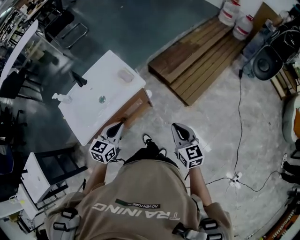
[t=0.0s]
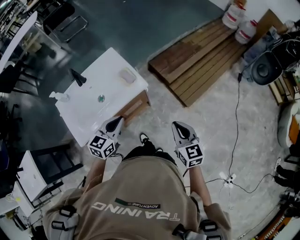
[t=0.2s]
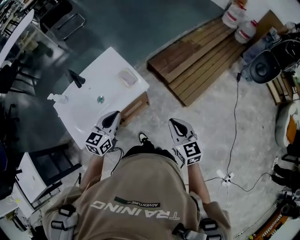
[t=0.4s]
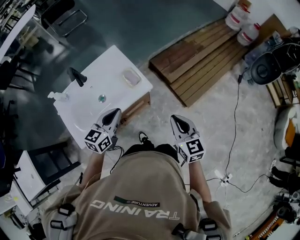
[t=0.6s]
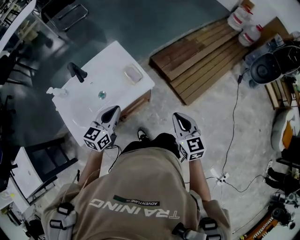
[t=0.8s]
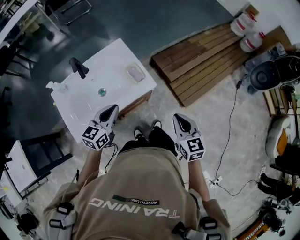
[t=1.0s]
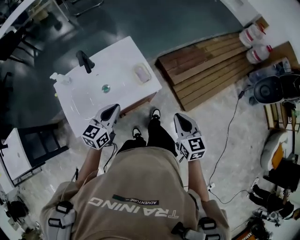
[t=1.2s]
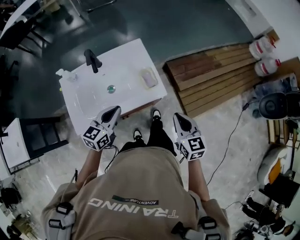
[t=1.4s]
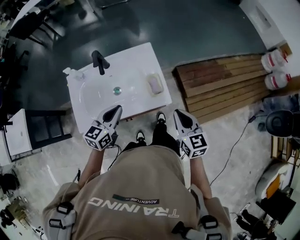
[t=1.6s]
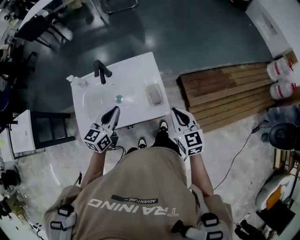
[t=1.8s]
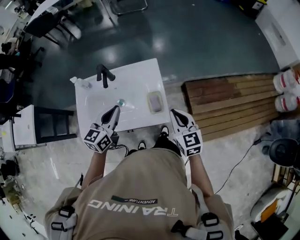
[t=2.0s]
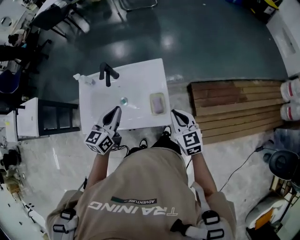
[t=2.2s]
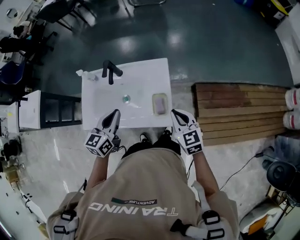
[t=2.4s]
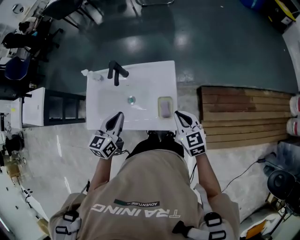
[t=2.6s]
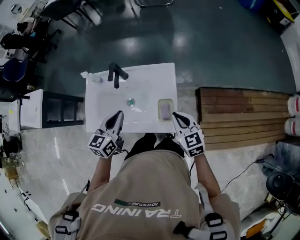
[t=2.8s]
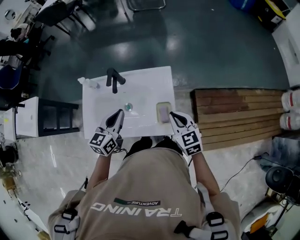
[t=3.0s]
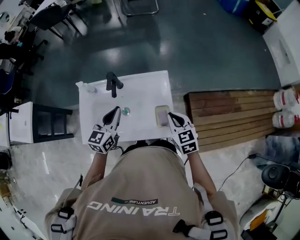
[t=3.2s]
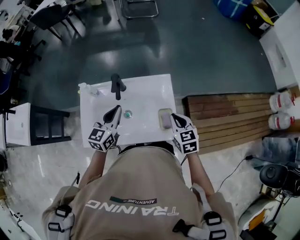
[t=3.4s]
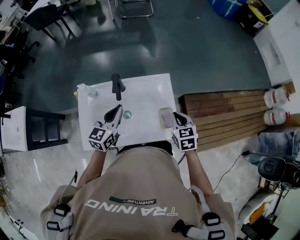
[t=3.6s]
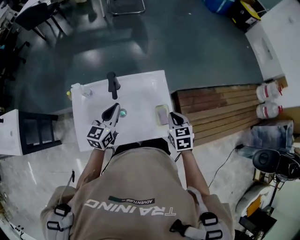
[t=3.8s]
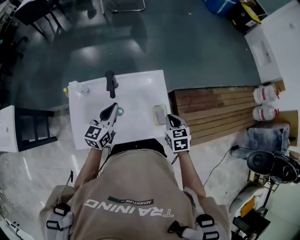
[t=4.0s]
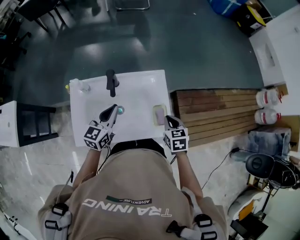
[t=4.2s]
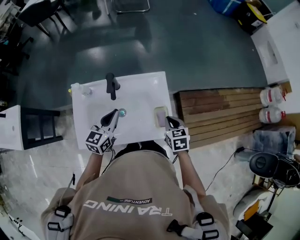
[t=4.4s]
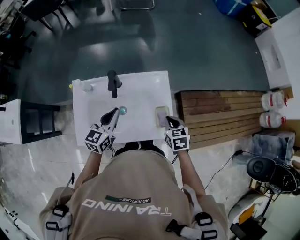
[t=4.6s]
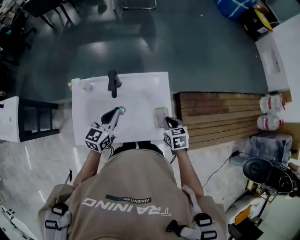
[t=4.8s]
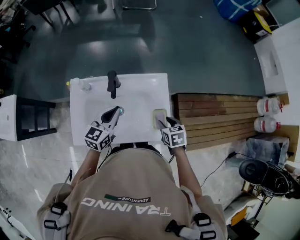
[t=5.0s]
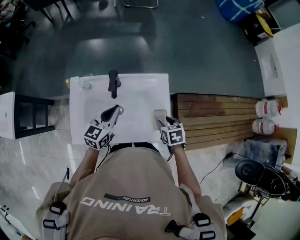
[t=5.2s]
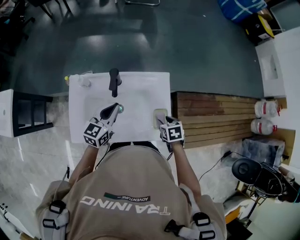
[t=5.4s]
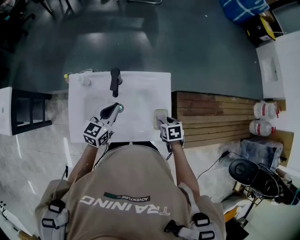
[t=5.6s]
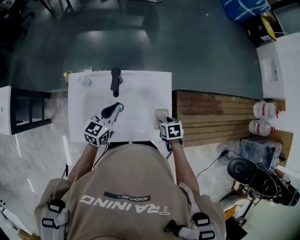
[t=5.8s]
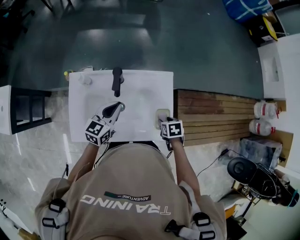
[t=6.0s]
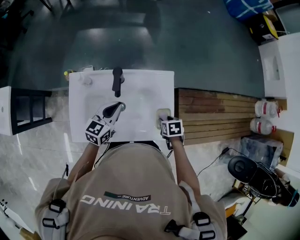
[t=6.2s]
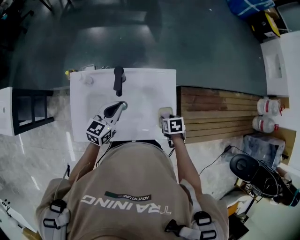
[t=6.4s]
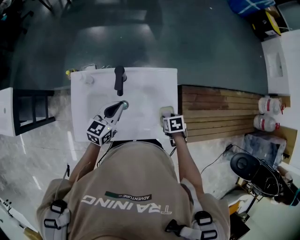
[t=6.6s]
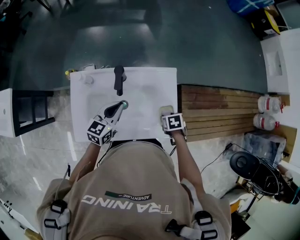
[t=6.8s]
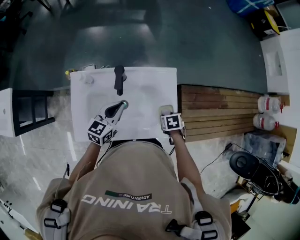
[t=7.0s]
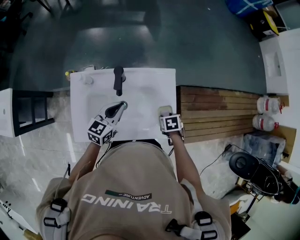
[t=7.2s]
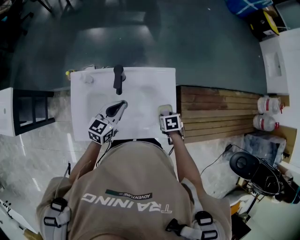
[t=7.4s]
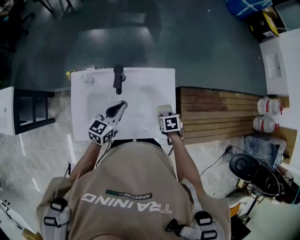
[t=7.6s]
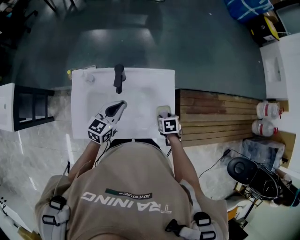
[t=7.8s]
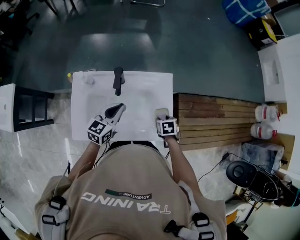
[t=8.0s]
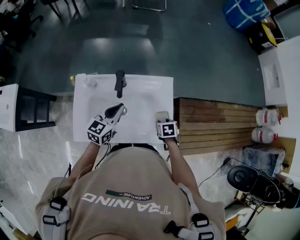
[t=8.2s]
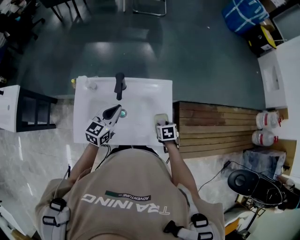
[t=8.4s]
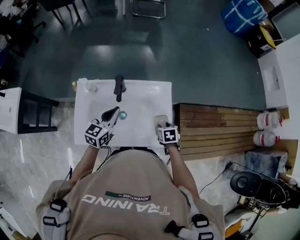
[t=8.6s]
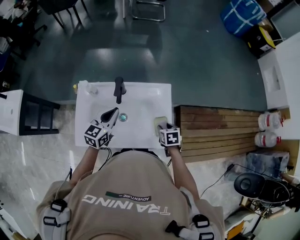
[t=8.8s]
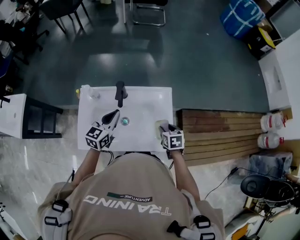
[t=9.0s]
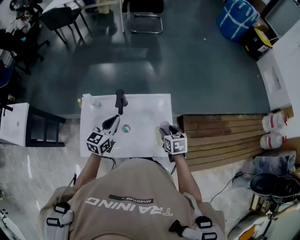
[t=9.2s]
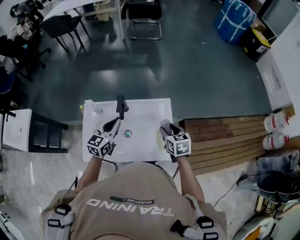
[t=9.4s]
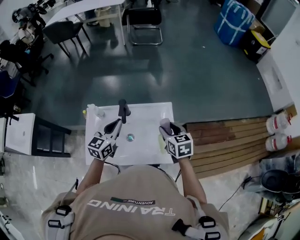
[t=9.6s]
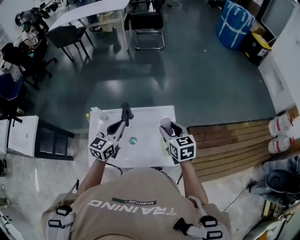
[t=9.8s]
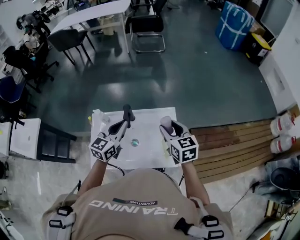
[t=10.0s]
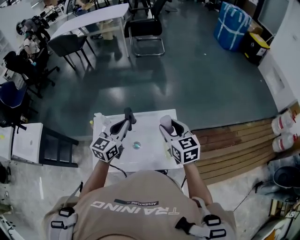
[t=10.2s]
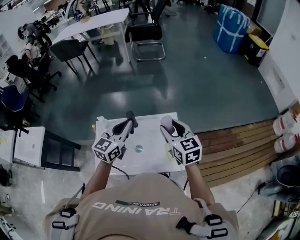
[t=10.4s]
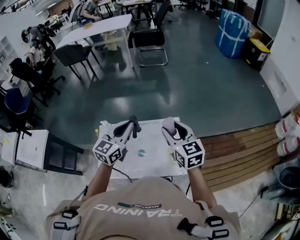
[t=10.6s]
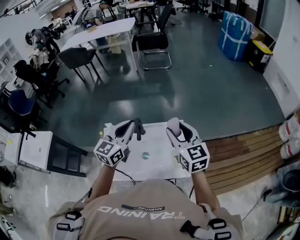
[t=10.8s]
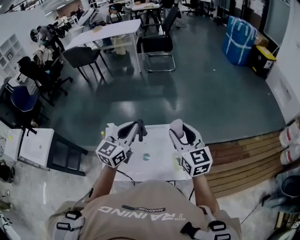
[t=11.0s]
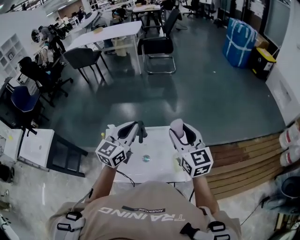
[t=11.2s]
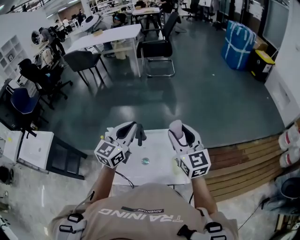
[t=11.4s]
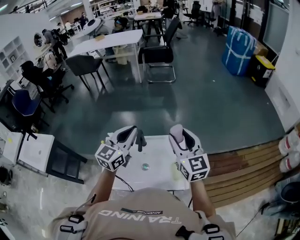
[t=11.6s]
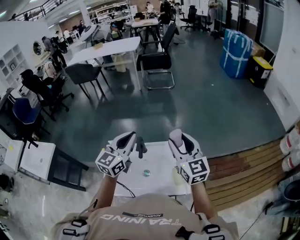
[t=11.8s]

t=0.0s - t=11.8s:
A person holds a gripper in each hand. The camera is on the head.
t=0.0s - t=1.4s: Both grippers travel together forward and to the left, some 20 cm. The left gripper changes its angle by some 20 degrees.
t=1.4s - t=3.0s: The right gripper ends up roughly 20 cm from where it was, and changes its angle by approximately 30 degrees; the left gripper changes place by some 15 cm, and rotates about 30 degrees.
t=3.0s - t=4.4s: The right gripper moves downward, roughly 5 cm, and turns by approximately 30 degrees; the left gripper changes place by roughly 5 cm.
t=4.4s - t=6.0s: The left gripper moves some 5 cm. The right gripper travels downward by roughly 10 cm, changes its angle by some 30 degrees, and opens.
t=6.0s - t=8.8s: There are only small adjustments of the grippers.
t=8.8s - t=10.4s: The left gripper shifts roughly 15 cm upward; the right gripper travels upward by approximately 30 cm, and angles its fingers upward, by approximately 40 degrees.
t=10.4s - t=11.8s: The two grippers go about 10 cm upward. The right gripper rotates some 20 degrees.

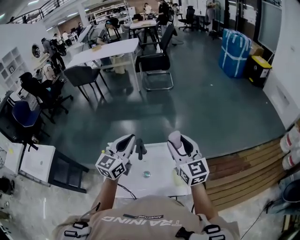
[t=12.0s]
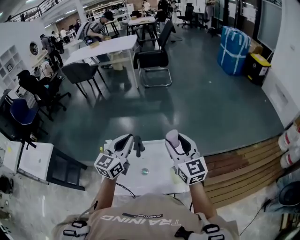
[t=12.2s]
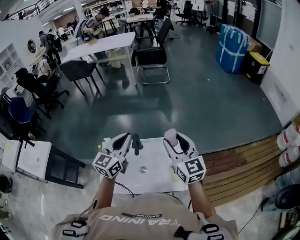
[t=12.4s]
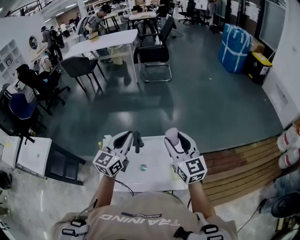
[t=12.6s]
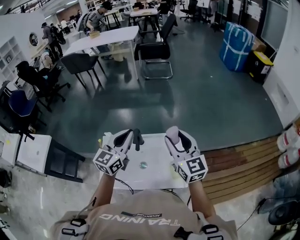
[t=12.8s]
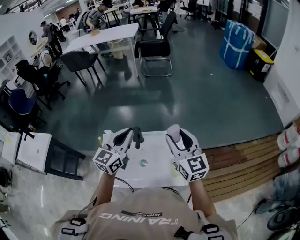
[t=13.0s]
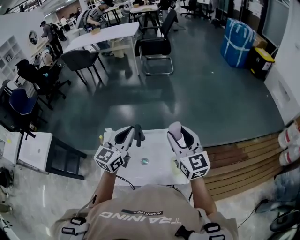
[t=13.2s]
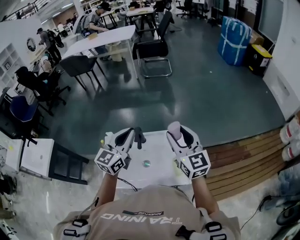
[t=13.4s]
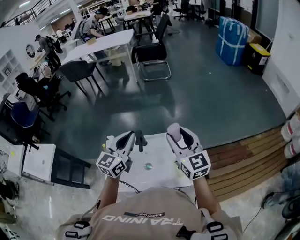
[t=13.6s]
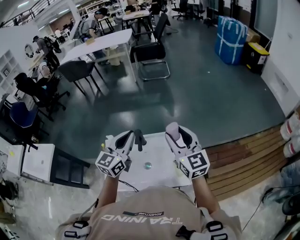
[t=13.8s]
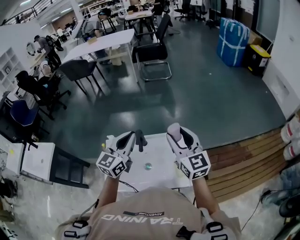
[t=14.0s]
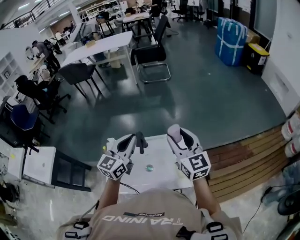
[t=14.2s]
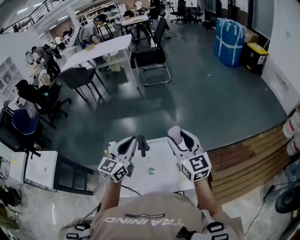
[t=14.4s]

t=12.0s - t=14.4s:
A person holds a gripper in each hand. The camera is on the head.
t=12.0s - t=13.2s: There are only small adjustments of the grippers.
t=13.2s - t=14.4s: The two grippers keep their place.

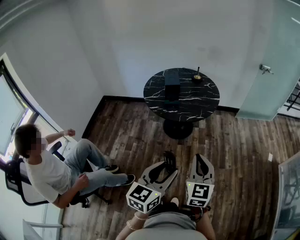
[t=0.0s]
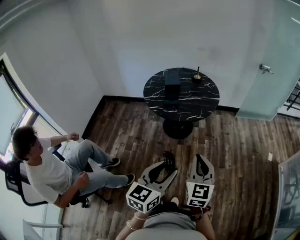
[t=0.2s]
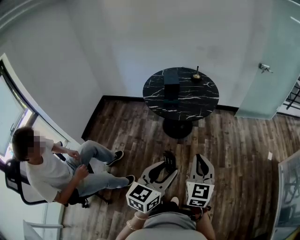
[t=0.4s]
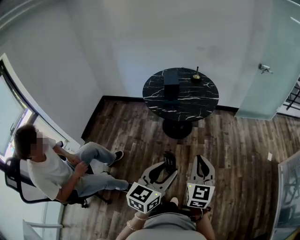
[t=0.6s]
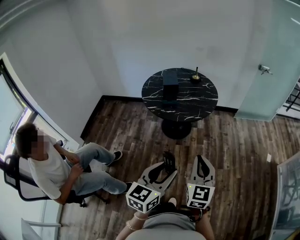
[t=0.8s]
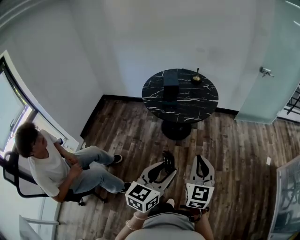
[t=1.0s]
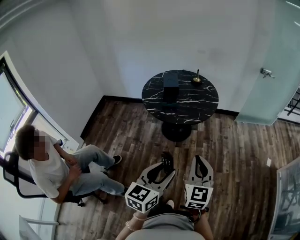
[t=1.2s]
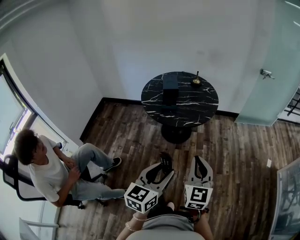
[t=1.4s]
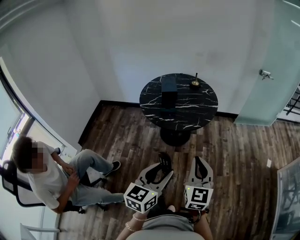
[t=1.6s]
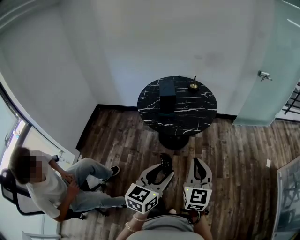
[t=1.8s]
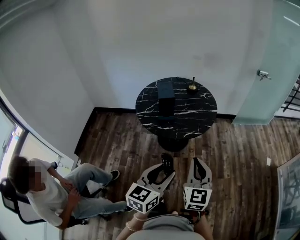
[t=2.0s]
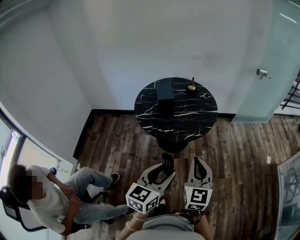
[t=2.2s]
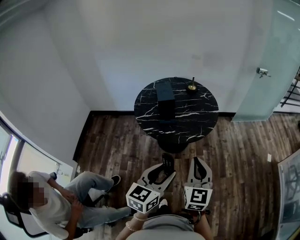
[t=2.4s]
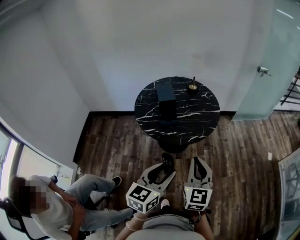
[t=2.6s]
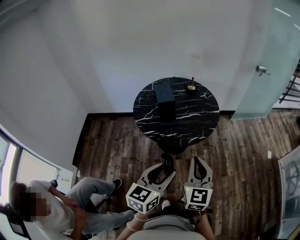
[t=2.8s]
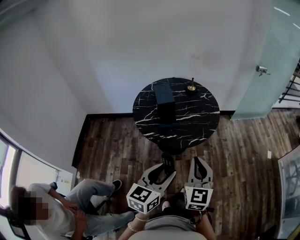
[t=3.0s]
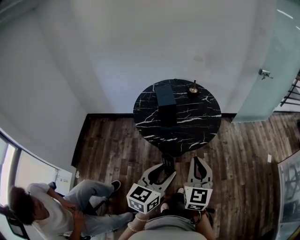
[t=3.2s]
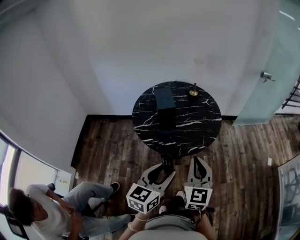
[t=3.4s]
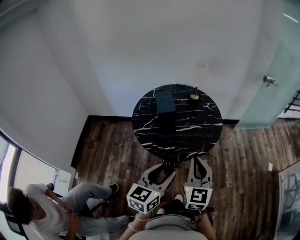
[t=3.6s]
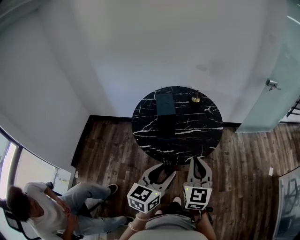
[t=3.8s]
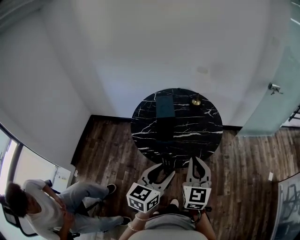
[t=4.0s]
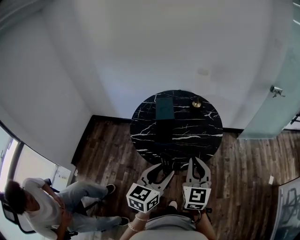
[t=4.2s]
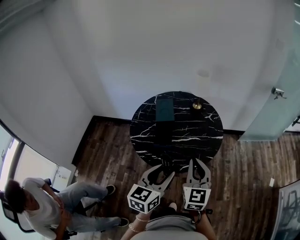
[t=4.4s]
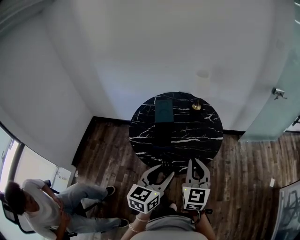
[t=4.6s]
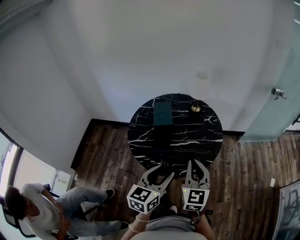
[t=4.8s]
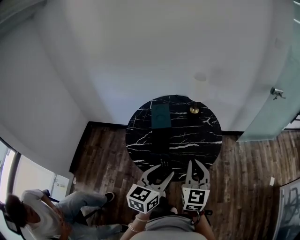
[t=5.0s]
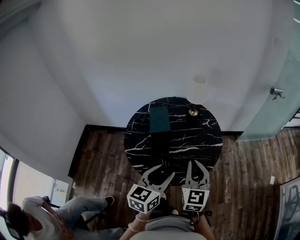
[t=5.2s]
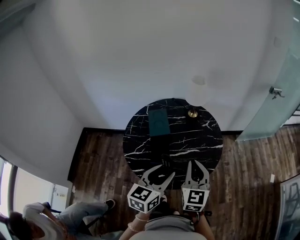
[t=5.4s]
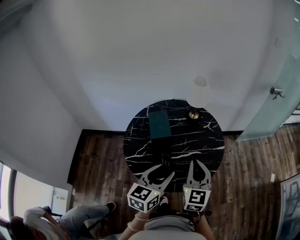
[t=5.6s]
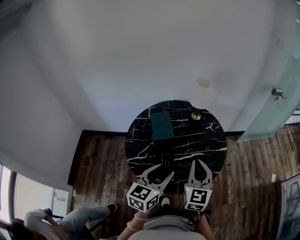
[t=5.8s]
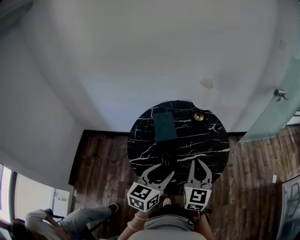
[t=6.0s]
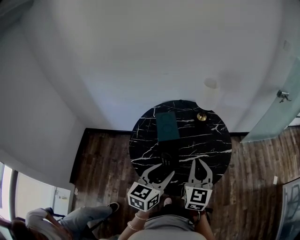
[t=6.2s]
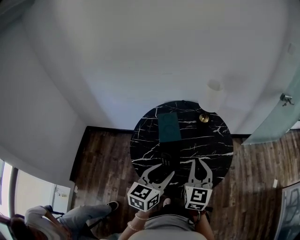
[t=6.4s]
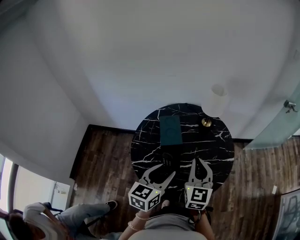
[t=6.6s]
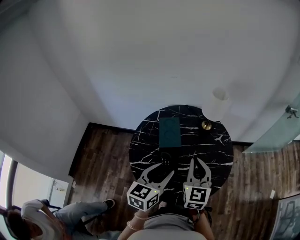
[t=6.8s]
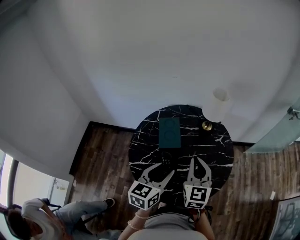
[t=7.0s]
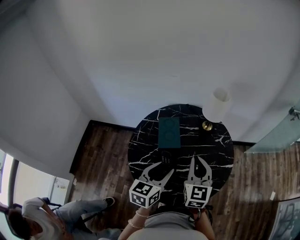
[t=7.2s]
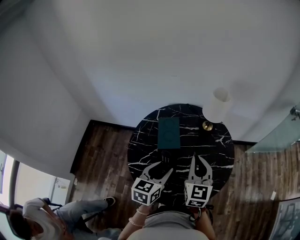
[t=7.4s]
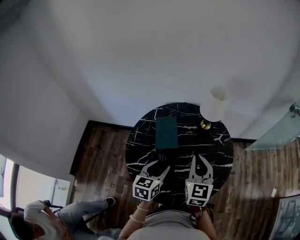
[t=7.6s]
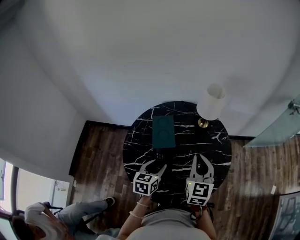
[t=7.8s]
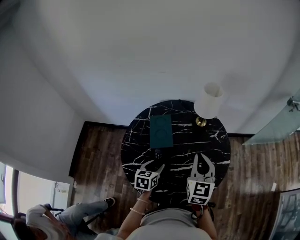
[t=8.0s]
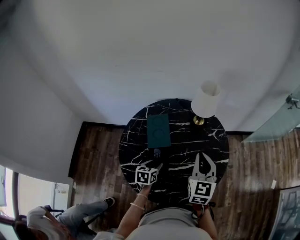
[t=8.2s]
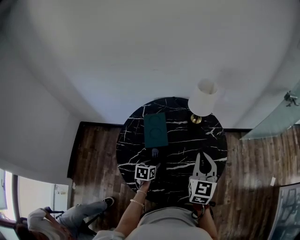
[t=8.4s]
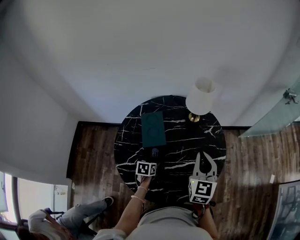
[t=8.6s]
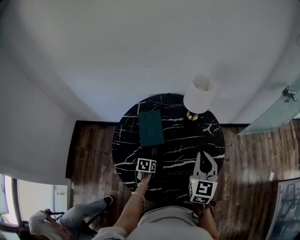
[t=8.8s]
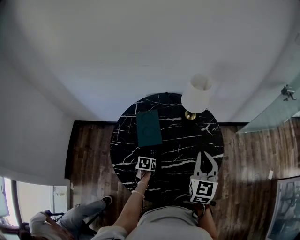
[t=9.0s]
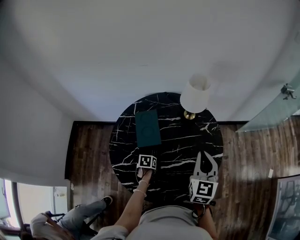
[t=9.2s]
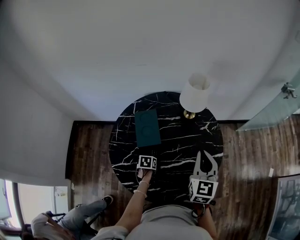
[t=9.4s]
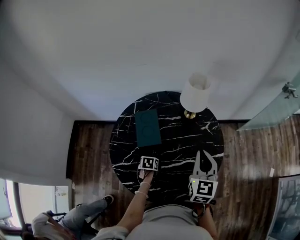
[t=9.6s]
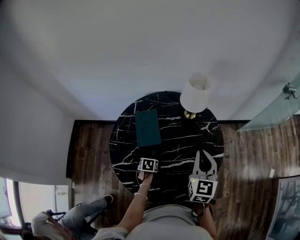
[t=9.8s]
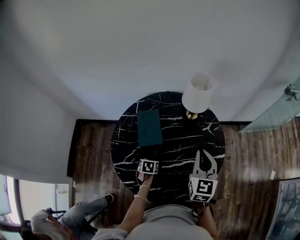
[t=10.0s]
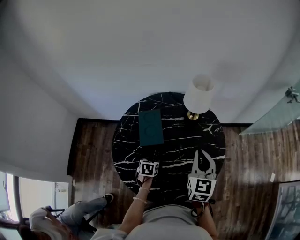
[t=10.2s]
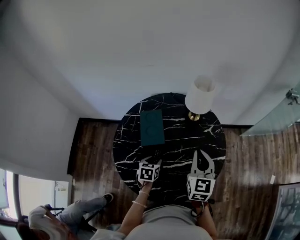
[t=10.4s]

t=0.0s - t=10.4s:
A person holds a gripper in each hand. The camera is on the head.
t=0.0s - t=1.4s: The grippers move only a little.
t=1.4s - t=3.0s: The two grippers go some 20 cm forward and to the left.
t=3.0s - t=4.4s: The grippers both shift forward by about 20 cm.
t=4.4s - t=6.0s: The two grippers go some 20 cm forward and to the left.
t=6.0s - t=7.4s: The two grippers go roughly 10 cm forward.
t=7.4s - t=9.0s: The left gripper is displaced downward by about 30 cm, and tips its fingers downward by some 40 degrees. Meanwhile the right gripper shifts some 10 cm to the right and forward.
t=9.0s - t=10.4s: The left gripper moves upward, about 10 cm.
